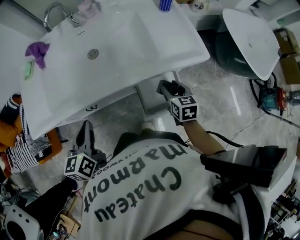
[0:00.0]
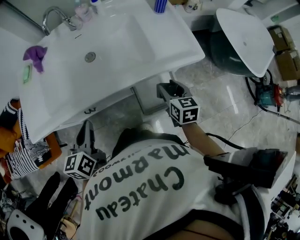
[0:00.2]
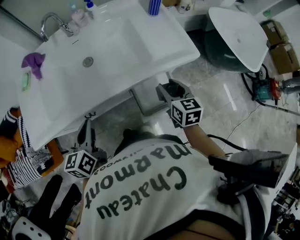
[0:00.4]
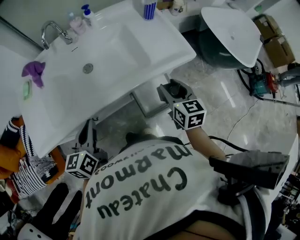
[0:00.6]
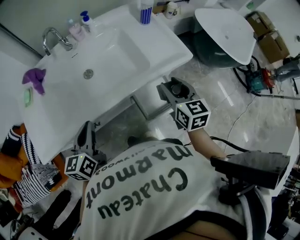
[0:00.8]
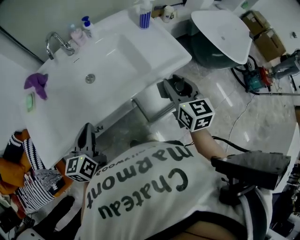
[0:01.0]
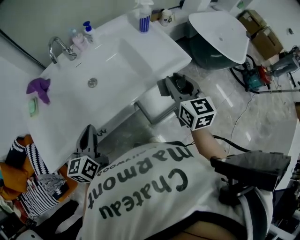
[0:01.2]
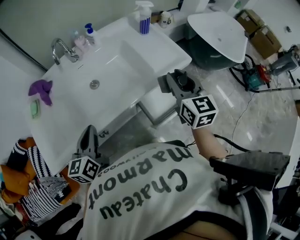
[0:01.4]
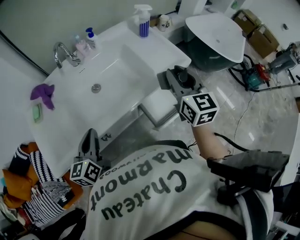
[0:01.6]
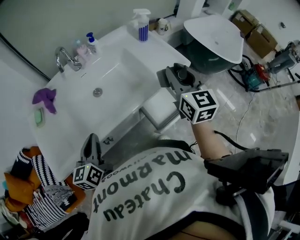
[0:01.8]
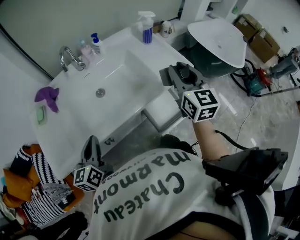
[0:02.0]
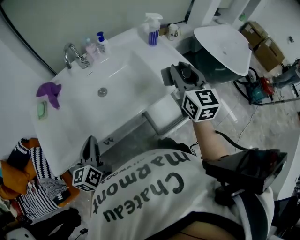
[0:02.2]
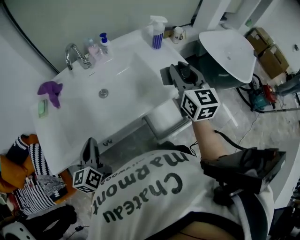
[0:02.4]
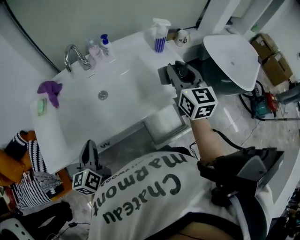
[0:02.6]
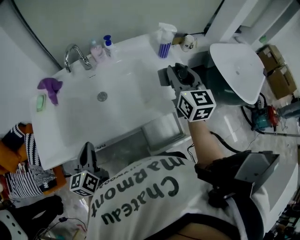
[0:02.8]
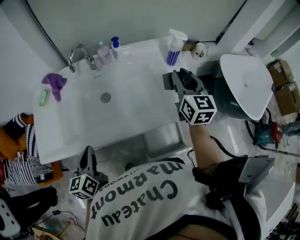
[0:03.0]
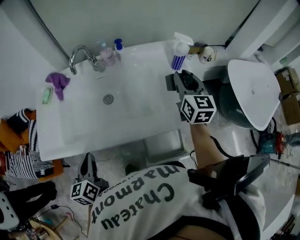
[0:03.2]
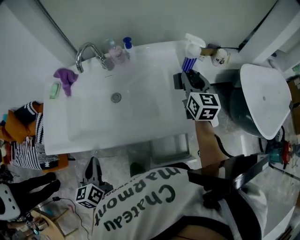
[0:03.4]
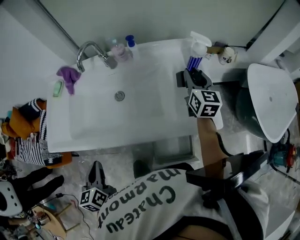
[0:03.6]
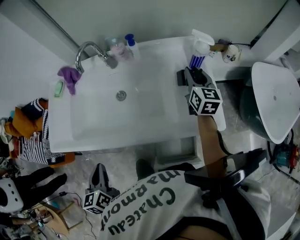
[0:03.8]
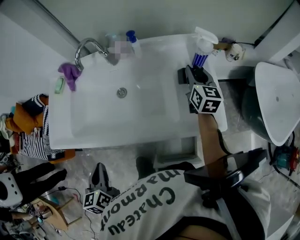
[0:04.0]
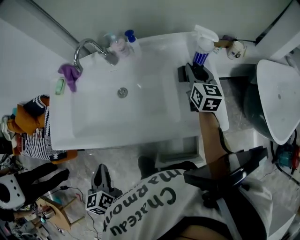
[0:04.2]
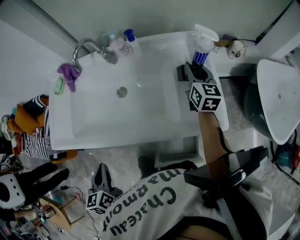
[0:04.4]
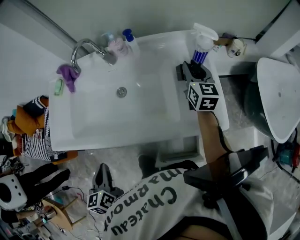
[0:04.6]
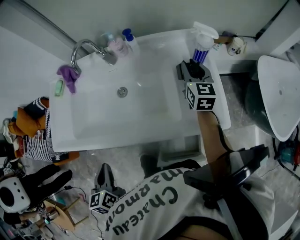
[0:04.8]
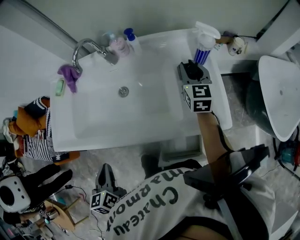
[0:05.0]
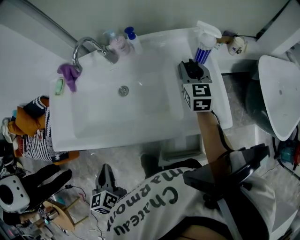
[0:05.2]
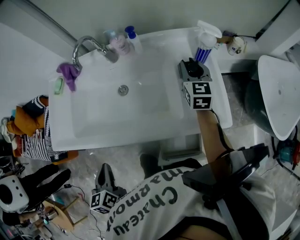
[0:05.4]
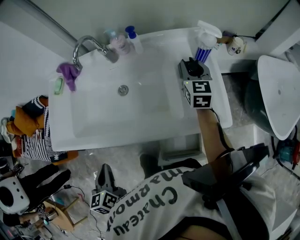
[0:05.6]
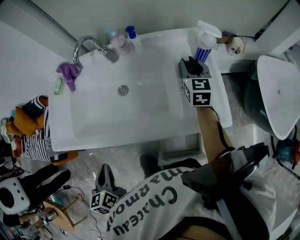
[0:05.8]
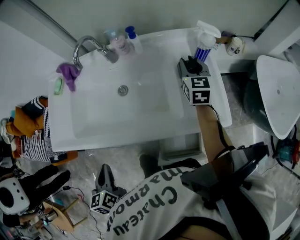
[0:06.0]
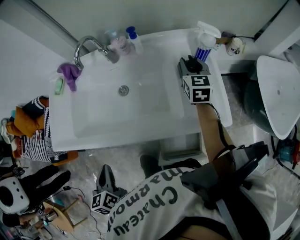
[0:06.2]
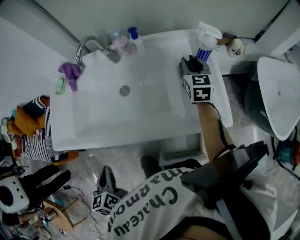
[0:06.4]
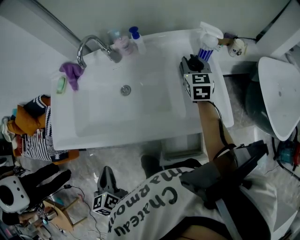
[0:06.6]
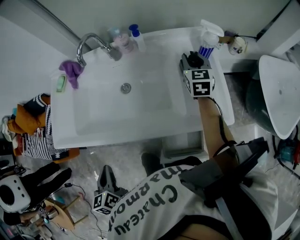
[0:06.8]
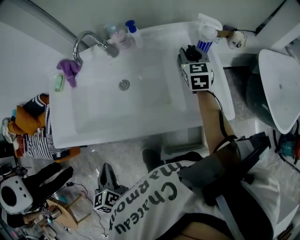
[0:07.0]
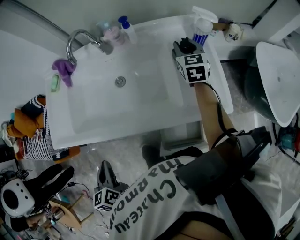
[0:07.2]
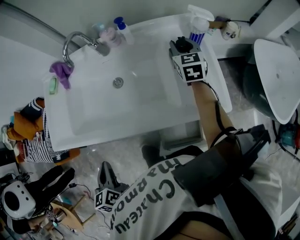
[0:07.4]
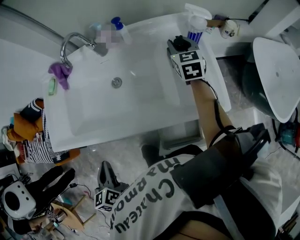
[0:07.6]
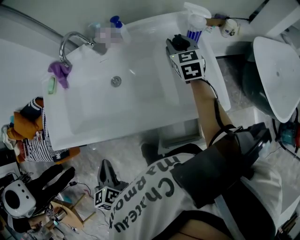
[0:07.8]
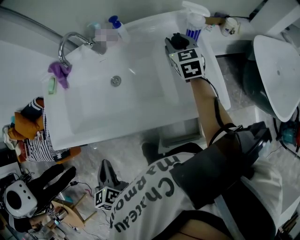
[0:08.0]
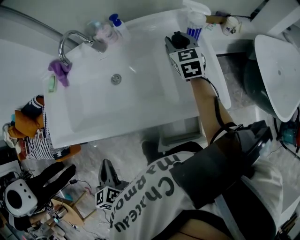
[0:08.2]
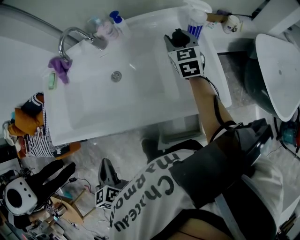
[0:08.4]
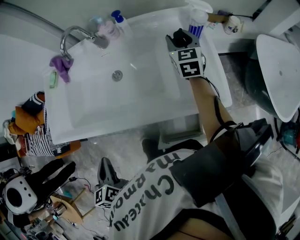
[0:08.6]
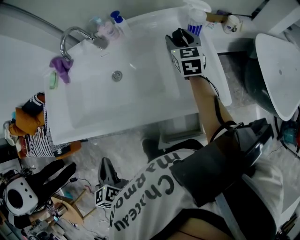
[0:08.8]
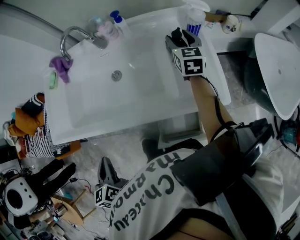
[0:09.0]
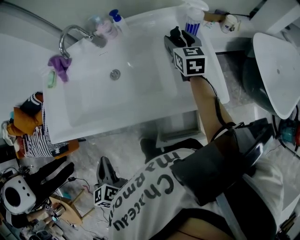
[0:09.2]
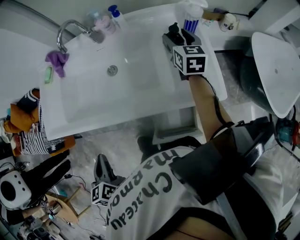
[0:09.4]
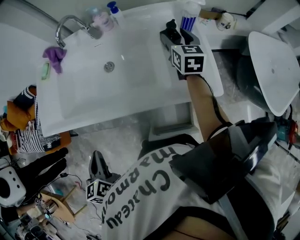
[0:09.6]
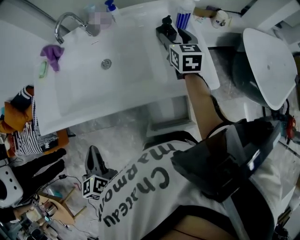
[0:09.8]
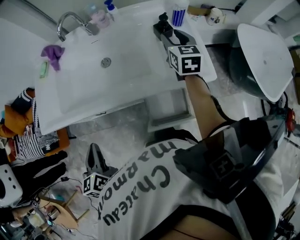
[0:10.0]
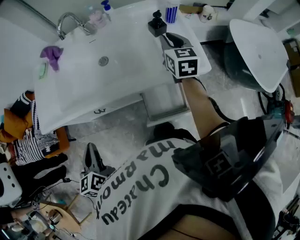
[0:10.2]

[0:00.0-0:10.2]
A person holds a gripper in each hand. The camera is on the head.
0:00.0 to 0:01.4: The left gripper is displaced forward, to the left and upward by about 10 cm, while the right gripper is displaced upward by some 25 cm, and rotates some 30 degrees.
0:01.4 to 0:03.0: The left gripper rotates about 30 degrees; the right gripper moves forward, some 20 cm.
0:03.0 to 0:04.4: The left gripper moves backward, roughly 5 cm, and swivels some 20 degrees. The right gripper moves forward and downward, approximately 15 cm.
0:04.4 to 0:07.2: There are only small adjustments of the grippers.
0:07.2 to 0:08.8: The right gripper opens.
0:08.8 to 0:10.2: The left gripper shifts by some 5 cm; the right gripper heads backward, covering approximately 15 cm, and closes.

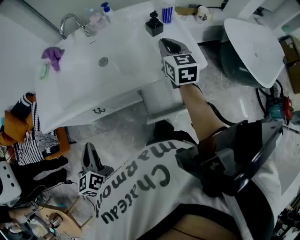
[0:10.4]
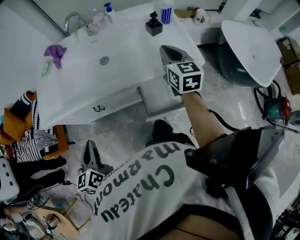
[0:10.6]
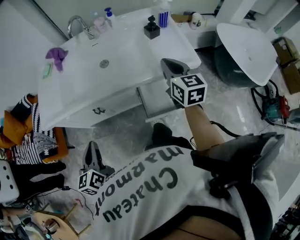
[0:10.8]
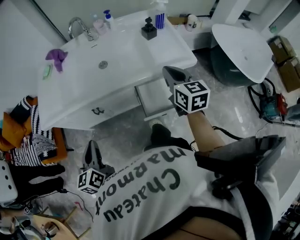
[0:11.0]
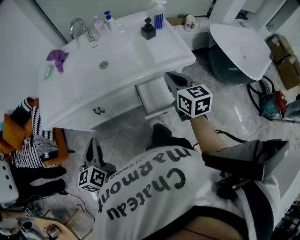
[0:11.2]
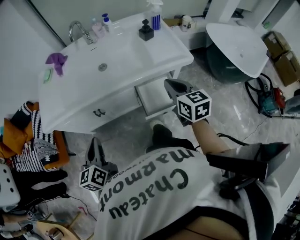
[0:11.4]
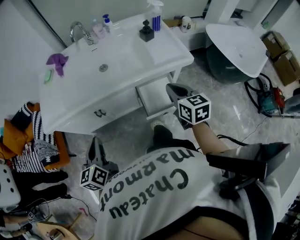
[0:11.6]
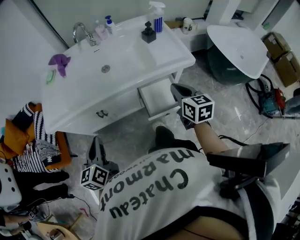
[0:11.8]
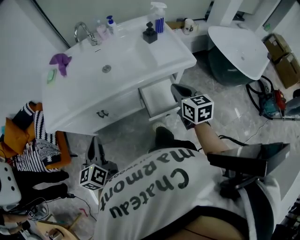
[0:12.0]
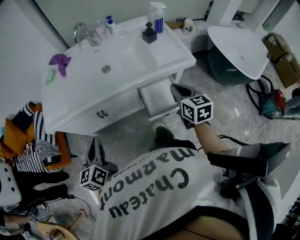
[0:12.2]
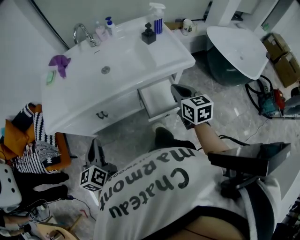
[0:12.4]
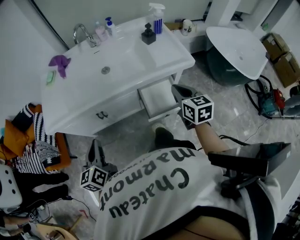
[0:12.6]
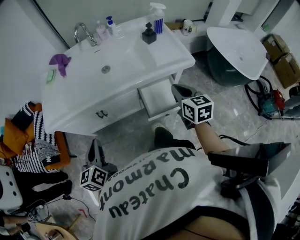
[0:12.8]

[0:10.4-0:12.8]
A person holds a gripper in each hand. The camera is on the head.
0:10.4 to 0:11.6: The right gripper goes approximately 25 cm backward.
0:11.6 to 0:12.8: The grippers stay close to where they were, moving slightly.

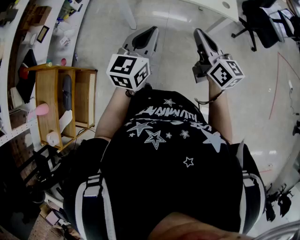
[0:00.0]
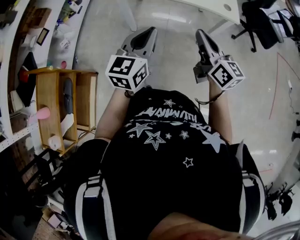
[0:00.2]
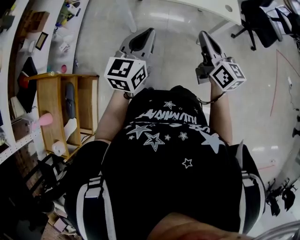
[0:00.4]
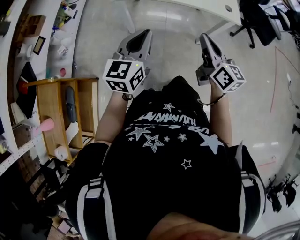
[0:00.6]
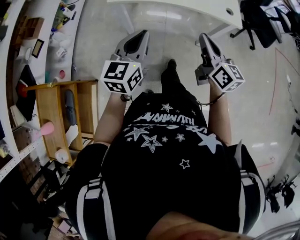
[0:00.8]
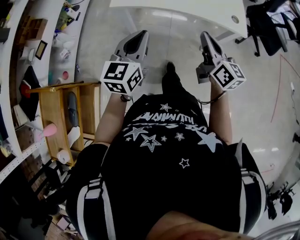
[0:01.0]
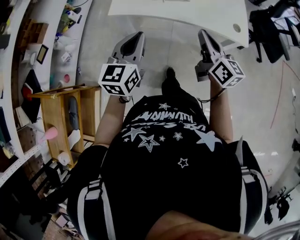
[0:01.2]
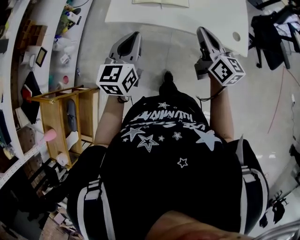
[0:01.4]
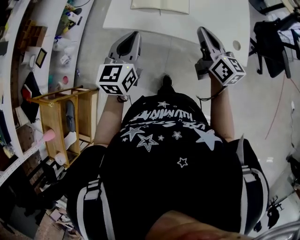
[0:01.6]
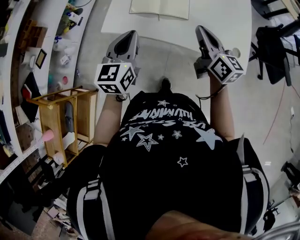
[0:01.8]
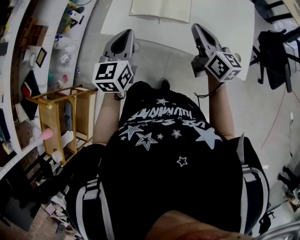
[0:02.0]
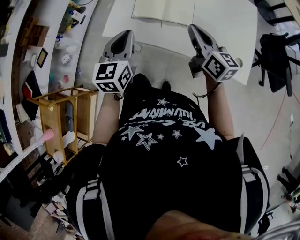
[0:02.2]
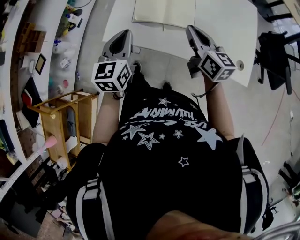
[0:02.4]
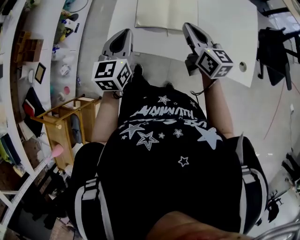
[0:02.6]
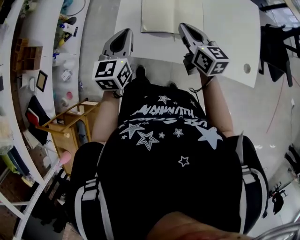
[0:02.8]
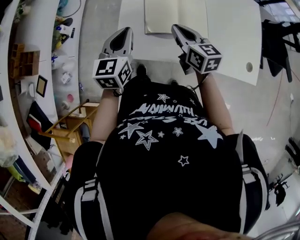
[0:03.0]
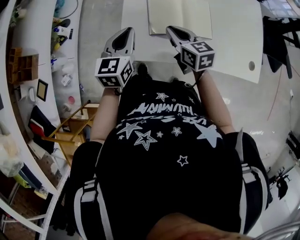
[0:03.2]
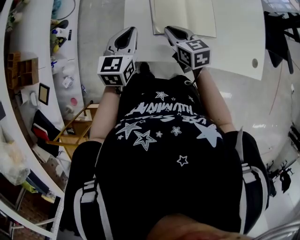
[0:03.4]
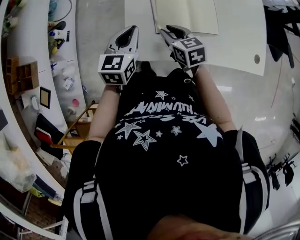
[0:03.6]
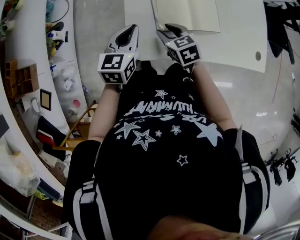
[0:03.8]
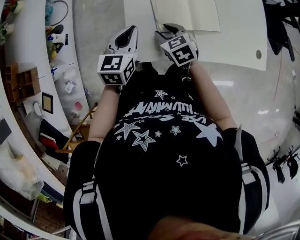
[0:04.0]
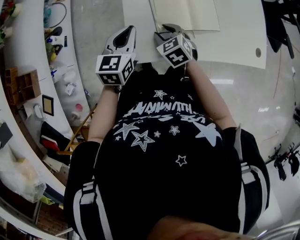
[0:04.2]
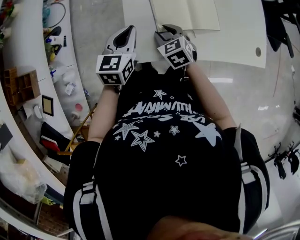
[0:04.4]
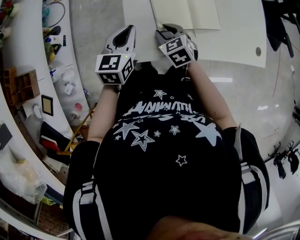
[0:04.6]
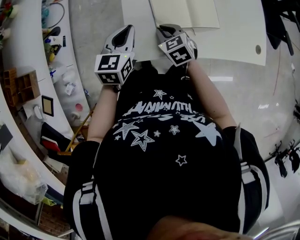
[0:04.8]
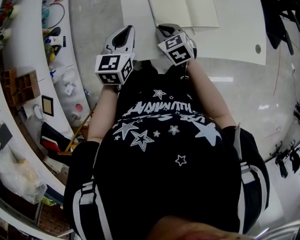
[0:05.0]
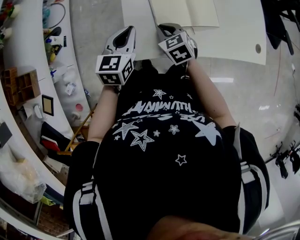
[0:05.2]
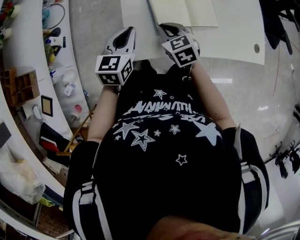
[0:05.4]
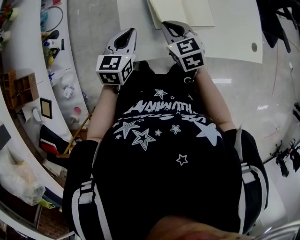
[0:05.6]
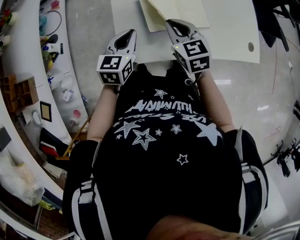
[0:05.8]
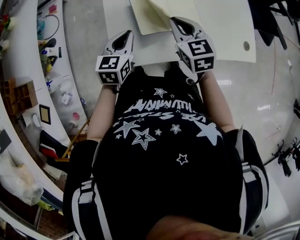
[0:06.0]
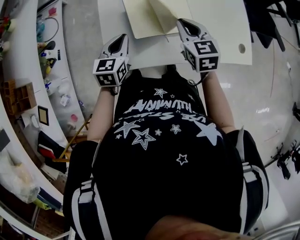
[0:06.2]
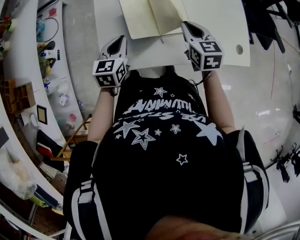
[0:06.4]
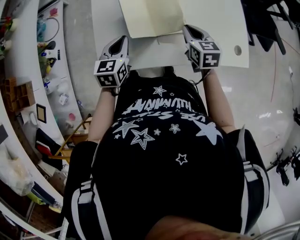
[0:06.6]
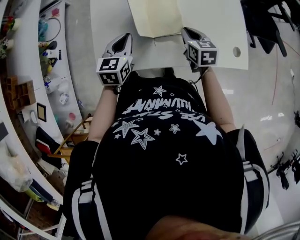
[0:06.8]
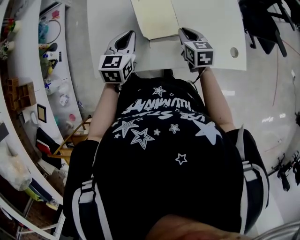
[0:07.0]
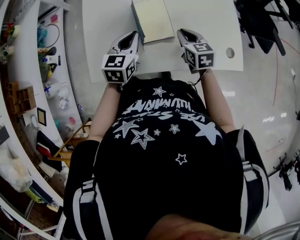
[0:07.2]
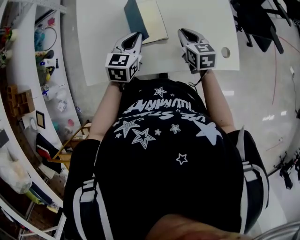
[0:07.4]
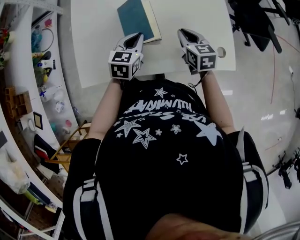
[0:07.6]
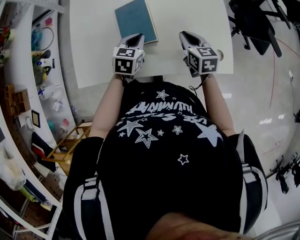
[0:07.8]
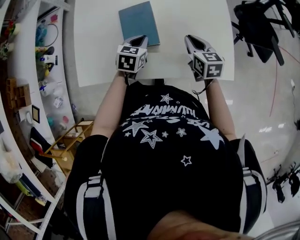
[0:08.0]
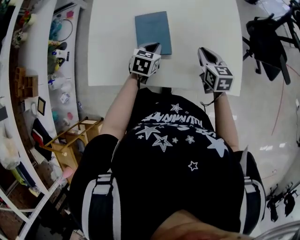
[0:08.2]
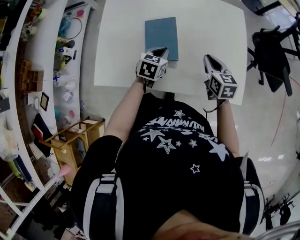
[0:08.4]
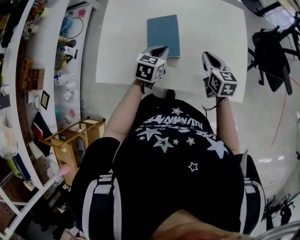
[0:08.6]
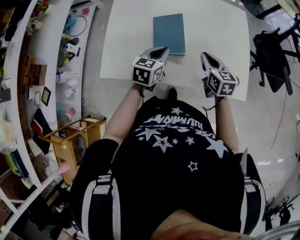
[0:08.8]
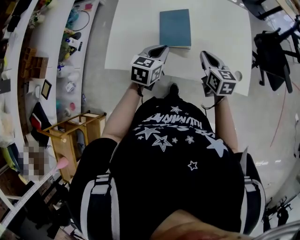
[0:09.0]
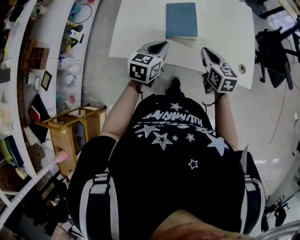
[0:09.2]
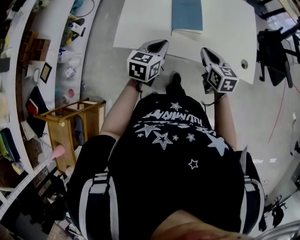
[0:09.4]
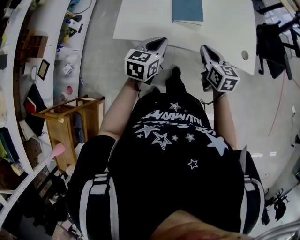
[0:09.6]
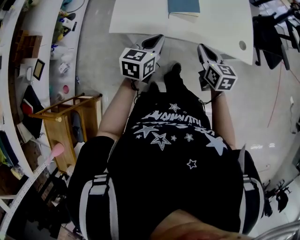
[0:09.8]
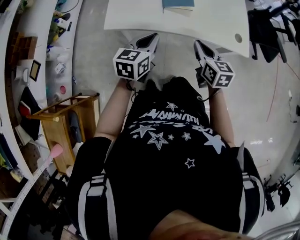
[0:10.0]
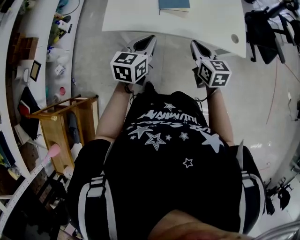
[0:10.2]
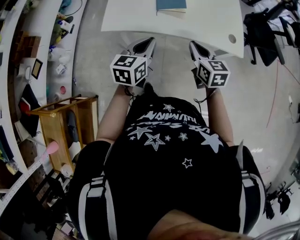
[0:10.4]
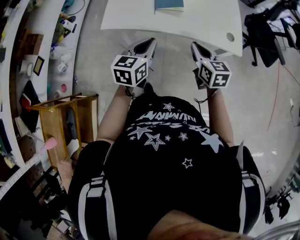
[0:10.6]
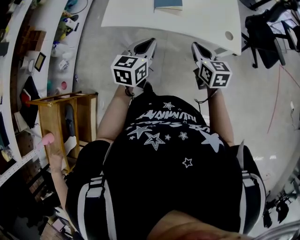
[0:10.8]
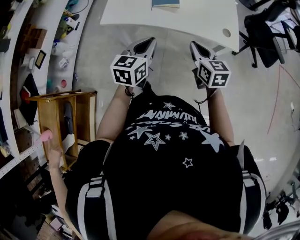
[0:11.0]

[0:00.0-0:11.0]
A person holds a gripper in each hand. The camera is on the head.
0:00.0 to 0:01.6: Both grippers travel together forward, approximately 30 cm.
0:01.6 to 0:03.2: The left gripper moves forward and to the left, roughly 25 cm. The right gripper shifts some 30 cm forward, to the left and downward, and changes its angle by about 20 degrees.
0:03.2 to 0:04.8: The left gripper moves some 5 cm, while the right gripper moves downward and to the left, roughly 10 cm, swivels about 30 degrees, and opens, then closes again.
0:04.8 to 0:06.2: The left gripper goes about 5 cm to the right. Meanwhile the right gripper moves to the right and upward, roughly 20 cm, and swivels approximately 20 degrees.
0:06.2 to 0:07.8: Both grippers travel together to the right, approximately 25 cm.
0:07.8 to 0:09.4: The left gripper travels backward, to the left and upward by about 20 cm. Meanwhile the right gripper goes some 15 cm backward and to the left.
0:09.4 to 0:11.0: The two grippers go some 15 cm backward.
